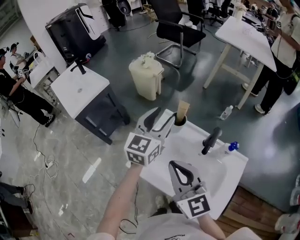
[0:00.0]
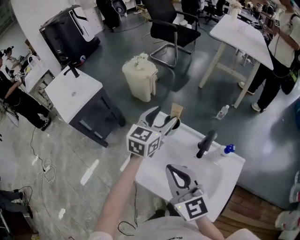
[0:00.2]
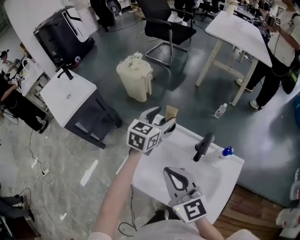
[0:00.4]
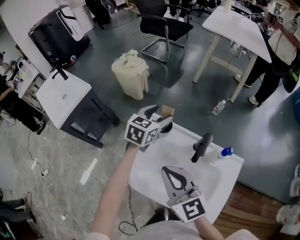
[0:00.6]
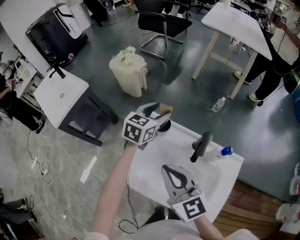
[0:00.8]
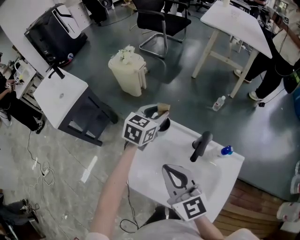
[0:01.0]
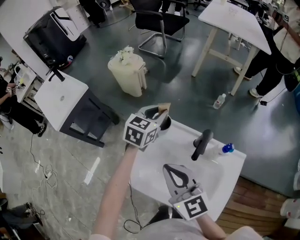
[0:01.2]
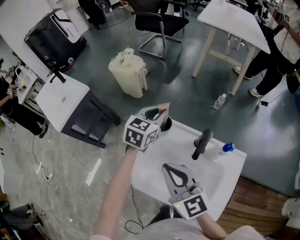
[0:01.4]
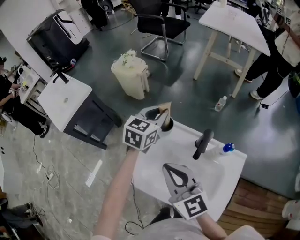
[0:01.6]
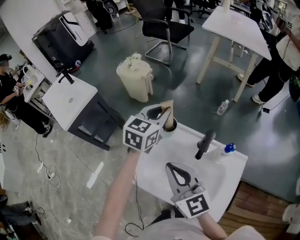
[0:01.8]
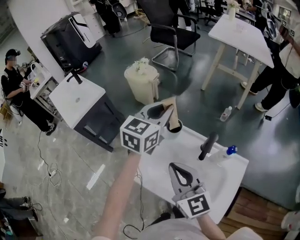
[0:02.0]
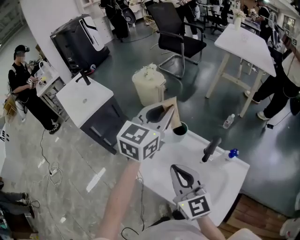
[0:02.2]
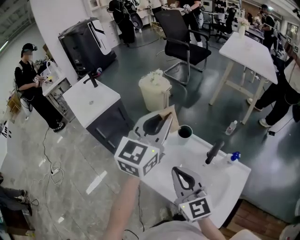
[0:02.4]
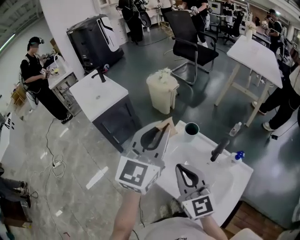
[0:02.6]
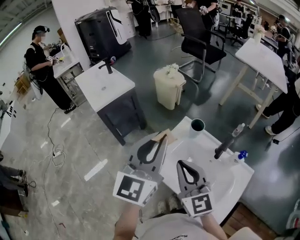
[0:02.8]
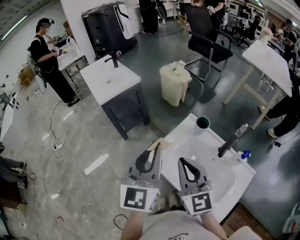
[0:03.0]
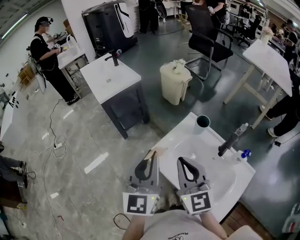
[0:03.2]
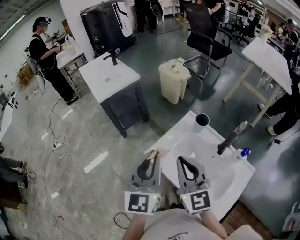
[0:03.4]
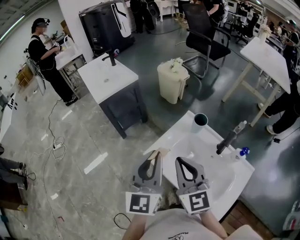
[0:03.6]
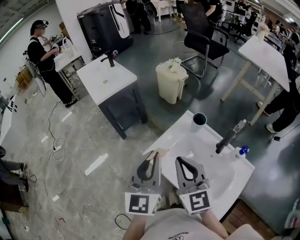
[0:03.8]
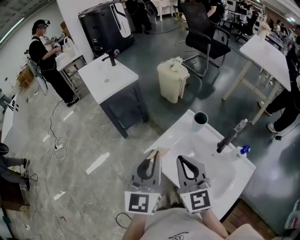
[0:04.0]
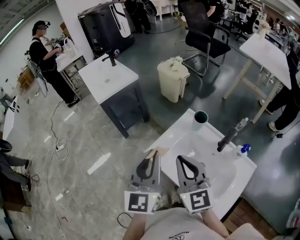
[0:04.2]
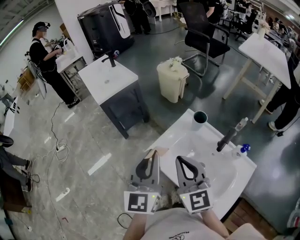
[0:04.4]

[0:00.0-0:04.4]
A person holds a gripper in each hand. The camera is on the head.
0:00.0 to 0:01.4: The left gripper is displaced downward, forward and to the right by about 15 cm, turns by about 20 degrees, and closes; the right gripper changes place by approximately 10 cm.
0:01.4 to 0:03.0: The left gripper moves backward, to the left and upward, some 40 cm, and points its fingers some 30 degrees further upward, while the right gripper travels to the left, backward and upward by approximately 15 cm.
0:03.0 to 0:04.4: The left gripper moves roughly 5 cm.

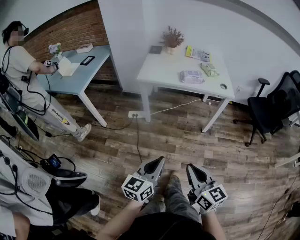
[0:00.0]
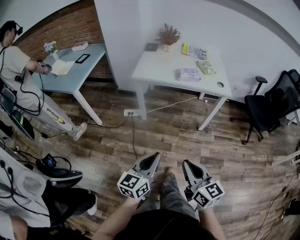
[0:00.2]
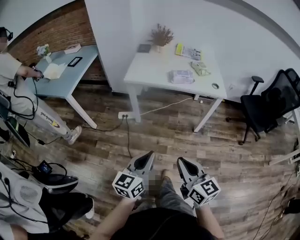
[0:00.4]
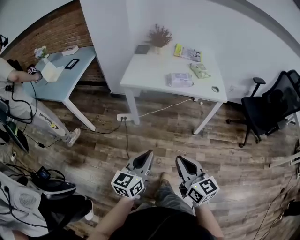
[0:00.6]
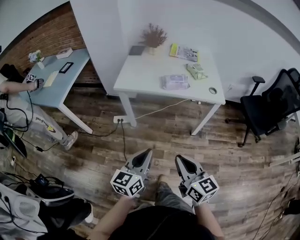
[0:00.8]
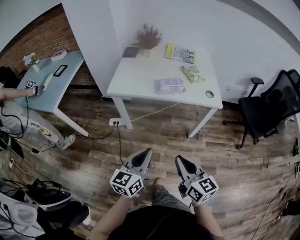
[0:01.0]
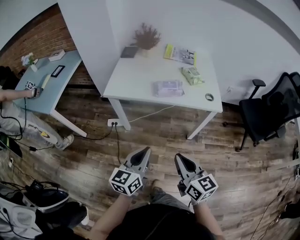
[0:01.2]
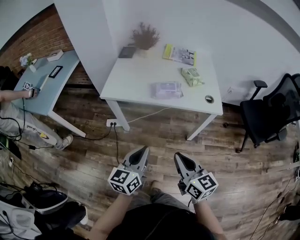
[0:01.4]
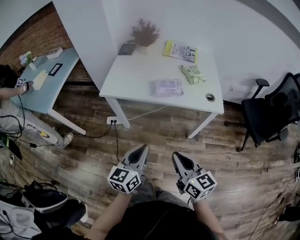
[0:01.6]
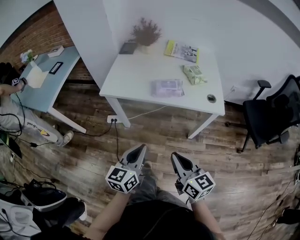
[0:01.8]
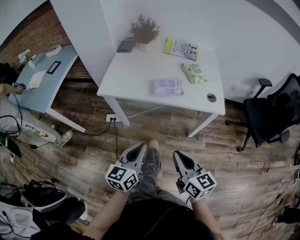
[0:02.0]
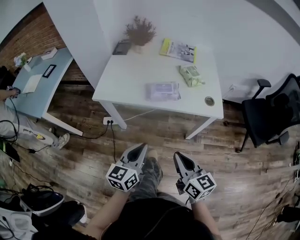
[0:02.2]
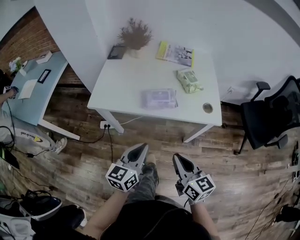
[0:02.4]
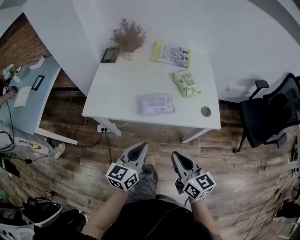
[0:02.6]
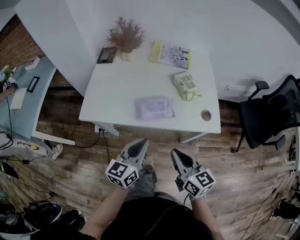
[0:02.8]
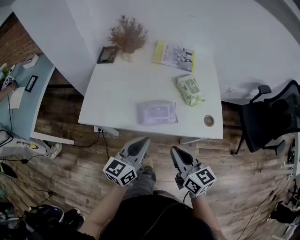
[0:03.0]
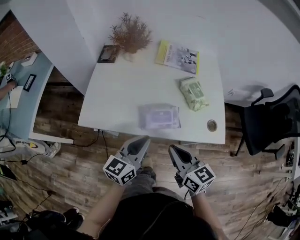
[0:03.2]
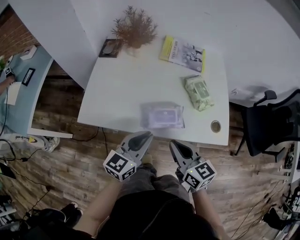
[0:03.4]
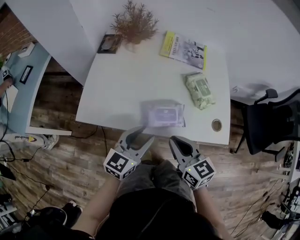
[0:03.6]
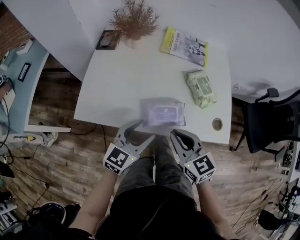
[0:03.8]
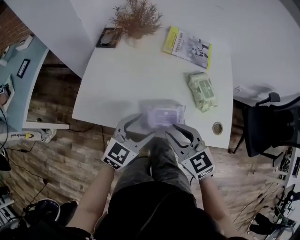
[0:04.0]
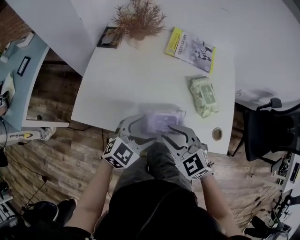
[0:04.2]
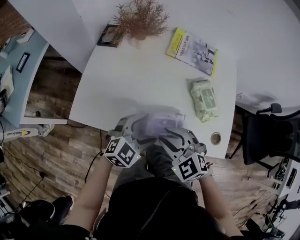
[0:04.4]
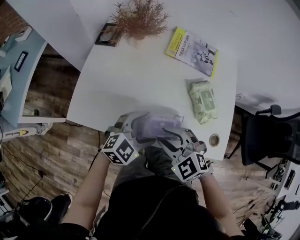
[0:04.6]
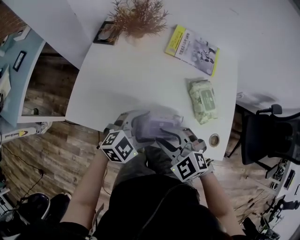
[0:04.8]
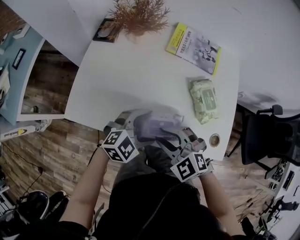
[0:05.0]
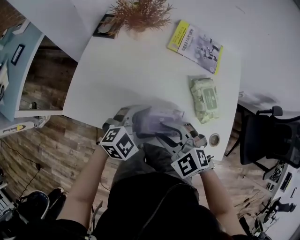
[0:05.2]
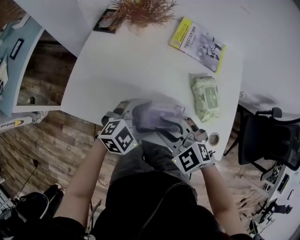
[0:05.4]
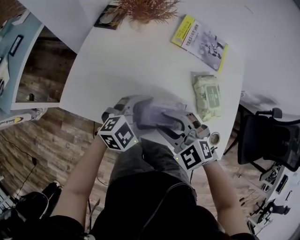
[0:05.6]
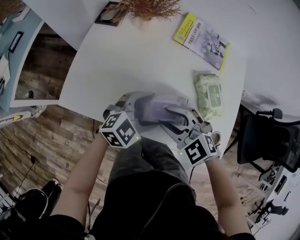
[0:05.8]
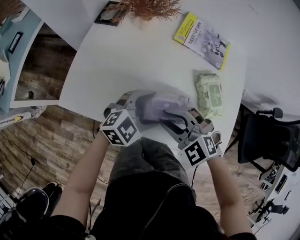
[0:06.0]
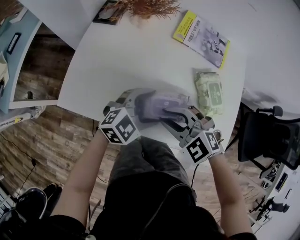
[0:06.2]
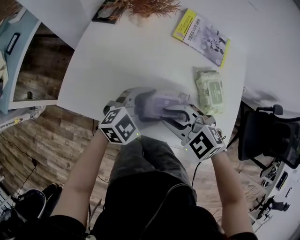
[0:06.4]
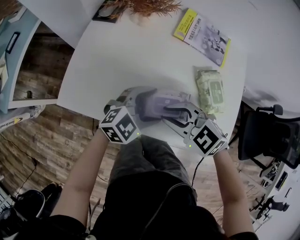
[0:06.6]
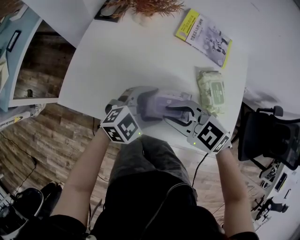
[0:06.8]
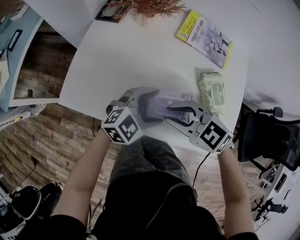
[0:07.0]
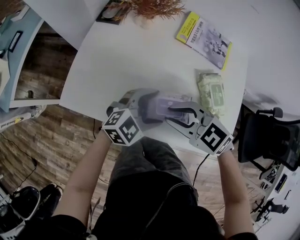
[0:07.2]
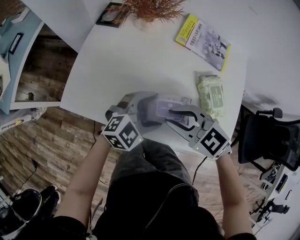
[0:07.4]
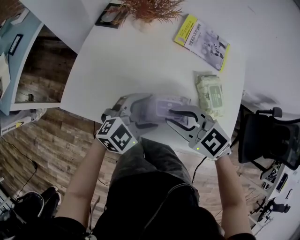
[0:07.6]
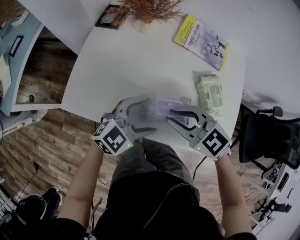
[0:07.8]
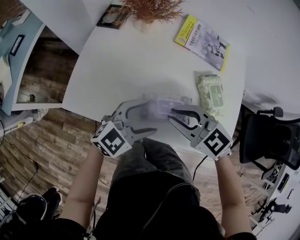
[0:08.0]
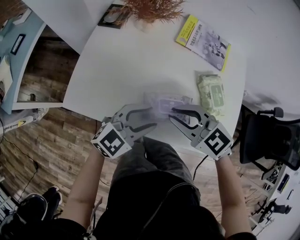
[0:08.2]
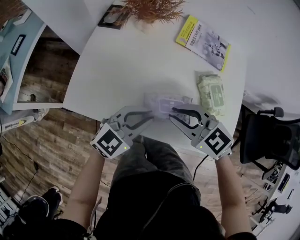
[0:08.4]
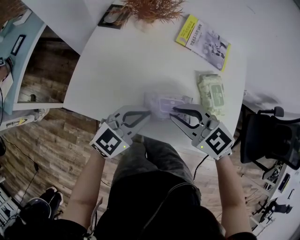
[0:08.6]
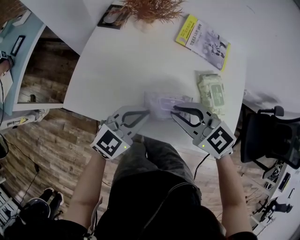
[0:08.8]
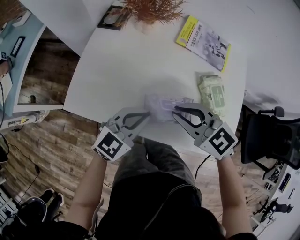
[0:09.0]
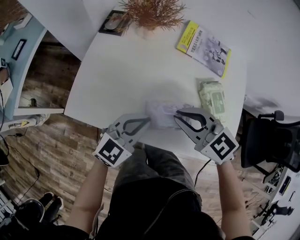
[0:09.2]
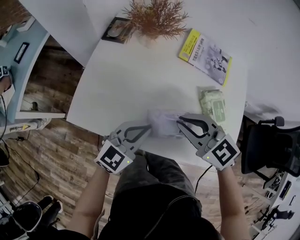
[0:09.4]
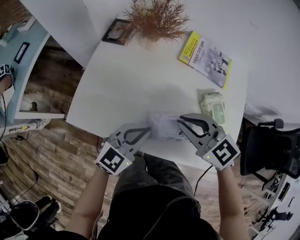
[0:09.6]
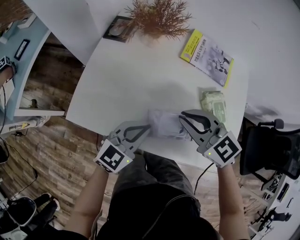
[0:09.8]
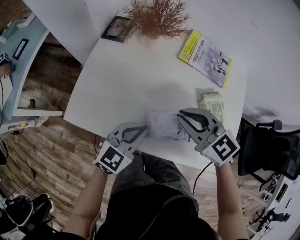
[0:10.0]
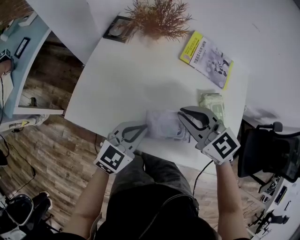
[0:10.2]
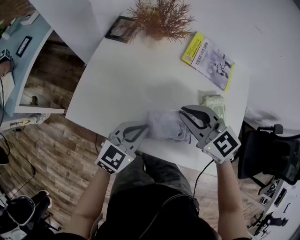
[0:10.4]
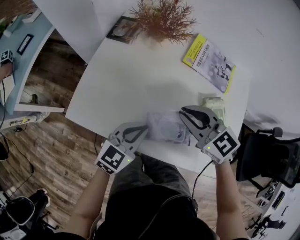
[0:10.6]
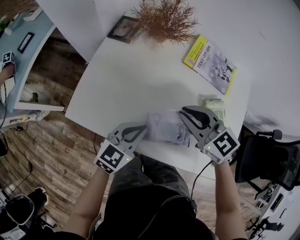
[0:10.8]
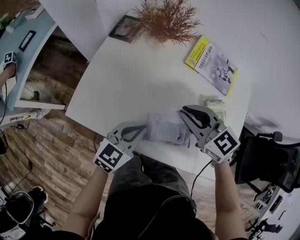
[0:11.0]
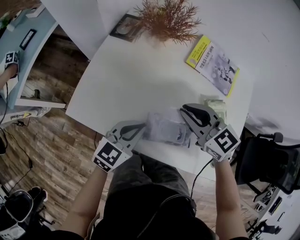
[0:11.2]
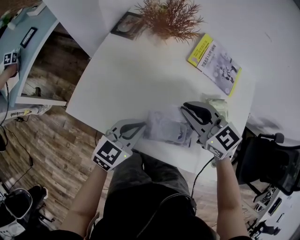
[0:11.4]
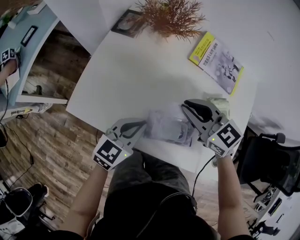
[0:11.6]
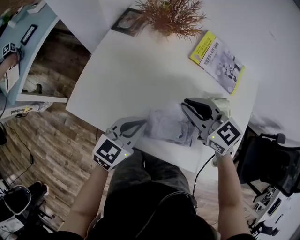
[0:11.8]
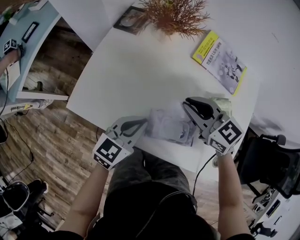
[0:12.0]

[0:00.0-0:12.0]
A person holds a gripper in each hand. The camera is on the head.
0:00.0 to 0:01.6: The two grippers go roughly 30 cm forward.
0:01.6 to 0:03.0: Both grippers travel together forward, approximately 25 cm.
0:03.0 to 0:04.4: The left gripper travels forward and downward by some 15 cm, turns by roughly 50 degrees, and opens up. The right gripper travels forward, to the left and downward by about 15 cm, twists some 50 degrees counterclockwise, seen from behind, and opens up.
0:04.4 to 0:06.0: The left gripper moves forward, roughly 5 cm.
0:06.0 to 0:07.6: The right gripper rotates roughly 20 degrees.
0:07.6 to 0:09.0: The left gripper closes its fingers.
0:09.0 to 0:10.4: The right gripper goes roughly 5 cm forward.
0:10.4 to 0:12.0: The right gripper moves some 5 cm.

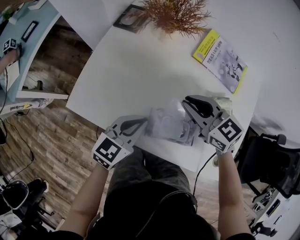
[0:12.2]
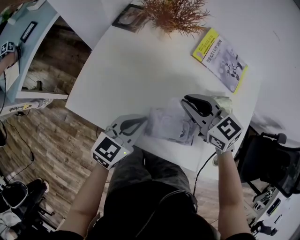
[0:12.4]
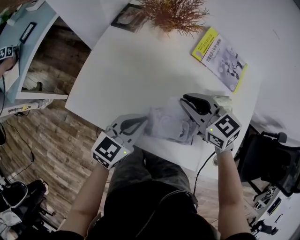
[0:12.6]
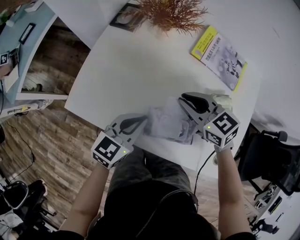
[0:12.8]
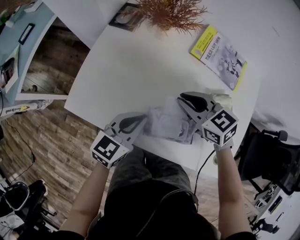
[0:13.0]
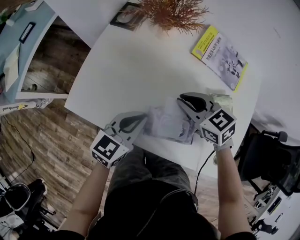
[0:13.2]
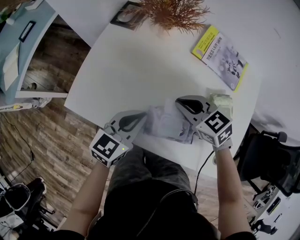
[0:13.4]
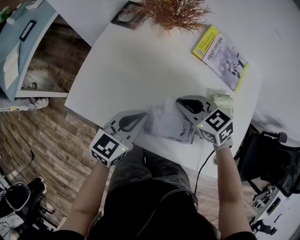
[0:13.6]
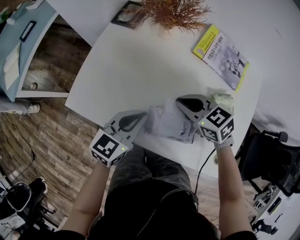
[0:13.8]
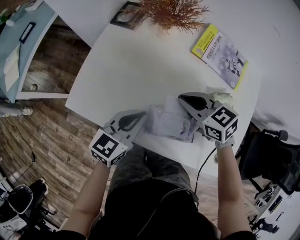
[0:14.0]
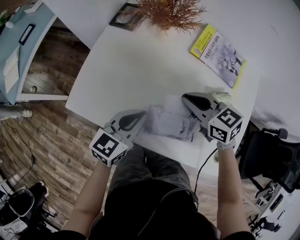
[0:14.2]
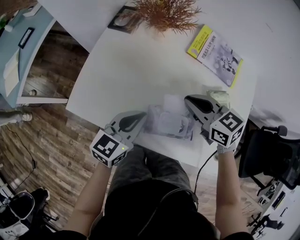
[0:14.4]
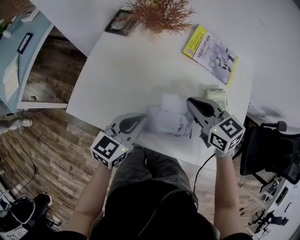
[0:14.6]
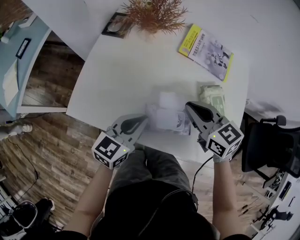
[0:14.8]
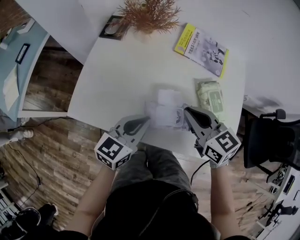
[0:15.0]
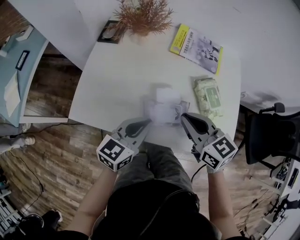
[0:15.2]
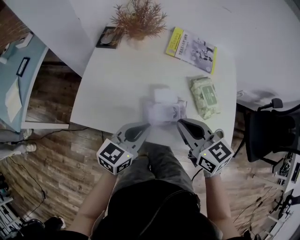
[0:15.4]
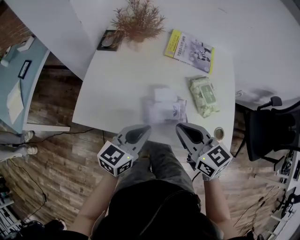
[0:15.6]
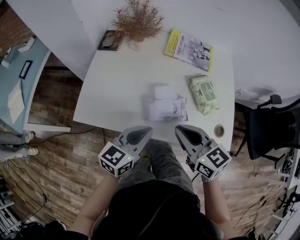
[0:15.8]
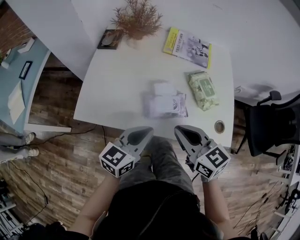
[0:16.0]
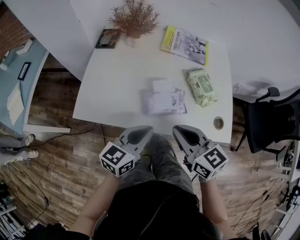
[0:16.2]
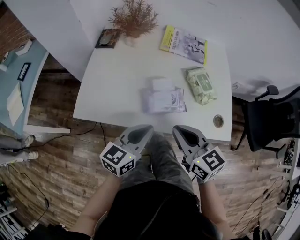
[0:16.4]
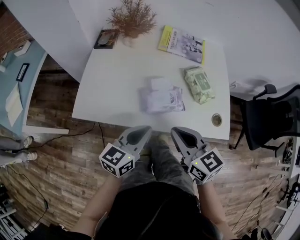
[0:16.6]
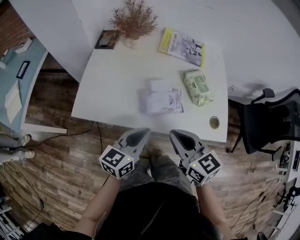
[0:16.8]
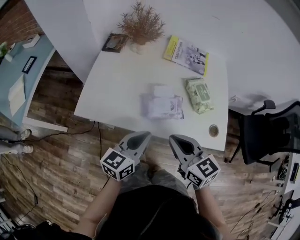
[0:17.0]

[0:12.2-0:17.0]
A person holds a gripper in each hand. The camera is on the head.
0:12.2 to 0:13.8: The right gripper goes roughly 5 cm downward.
0:13.8 to 0:15.4: The left gripper moves backward, approximately 5 cm; the right gripper travels backward and upward by roughly 15 cm, and changes its angle by about 30 degrees.
0:15.4 to 0:17.0: Both grippers move backward, approximately 10 cm.

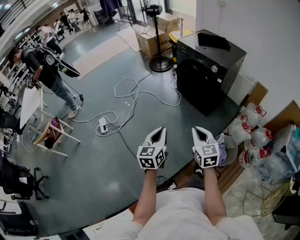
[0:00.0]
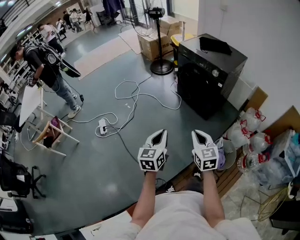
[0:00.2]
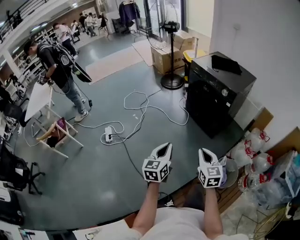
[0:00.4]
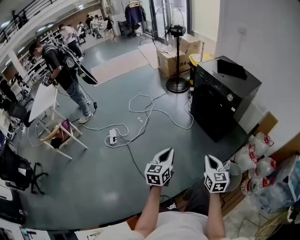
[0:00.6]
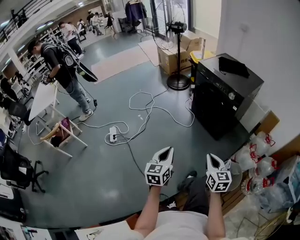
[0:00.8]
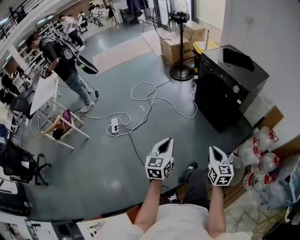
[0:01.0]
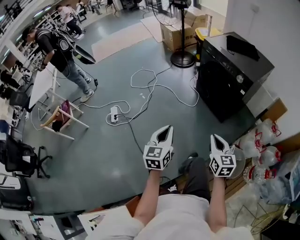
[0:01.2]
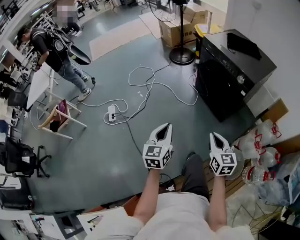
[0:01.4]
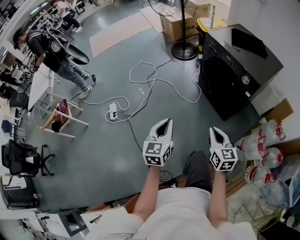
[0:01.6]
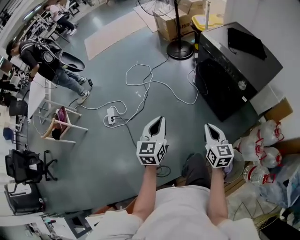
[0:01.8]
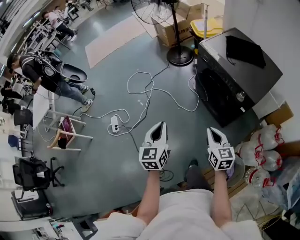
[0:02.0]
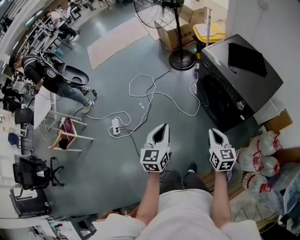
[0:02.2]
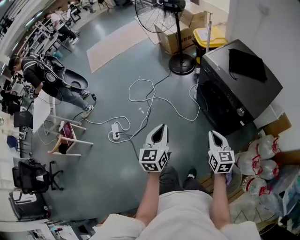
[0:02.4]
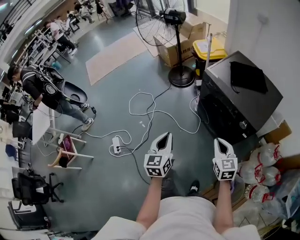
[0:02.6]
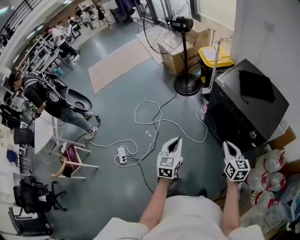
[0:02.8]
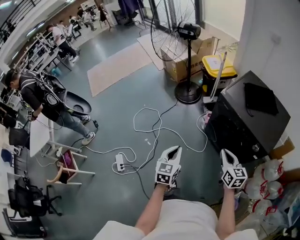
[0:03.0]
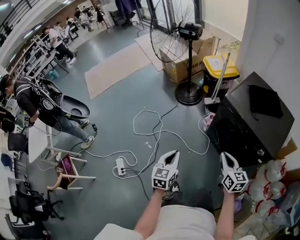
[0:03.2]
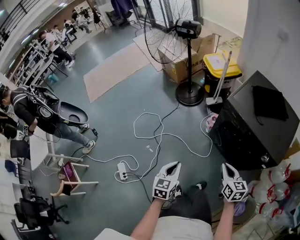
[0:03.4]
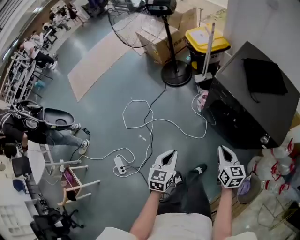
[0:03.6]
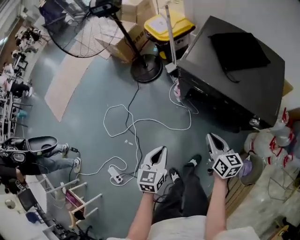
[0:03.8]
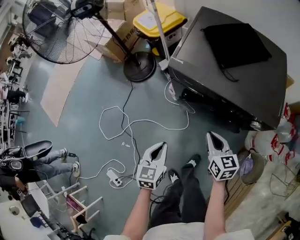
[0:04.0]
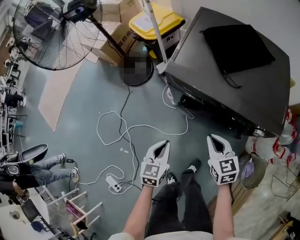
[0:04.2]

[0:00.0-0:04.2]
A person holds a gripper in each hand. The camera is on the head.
0:00.0 to 0:01.4: The two grippers go some 10 cm forward.
0:01.4 to 0:02.8: The grippers both shift forward by some 35 cm.
0:02.8 to 0:04.2: The left gripper is displaced forward and downward by some 35 cm, and changes its angle by approximately 30 degrees; the right gripper is displaced downward and forward by roughly 30 cm.
